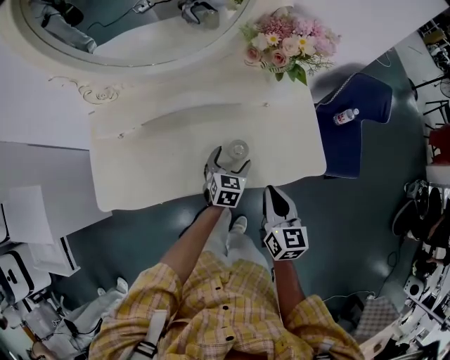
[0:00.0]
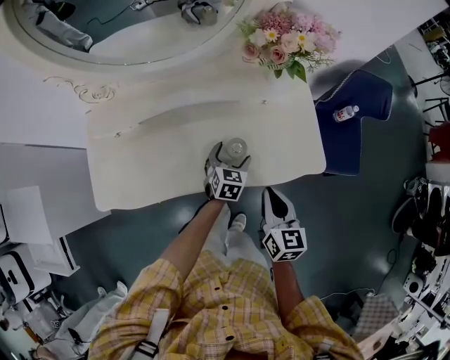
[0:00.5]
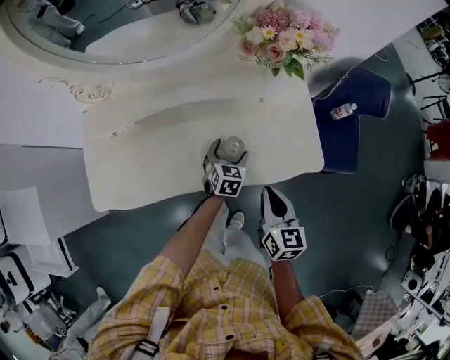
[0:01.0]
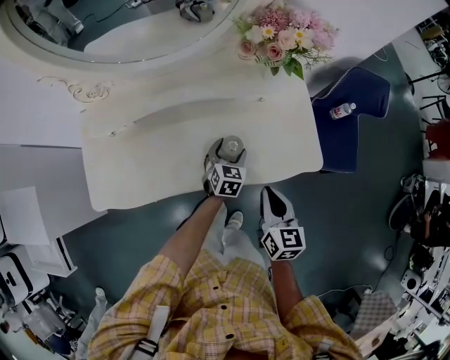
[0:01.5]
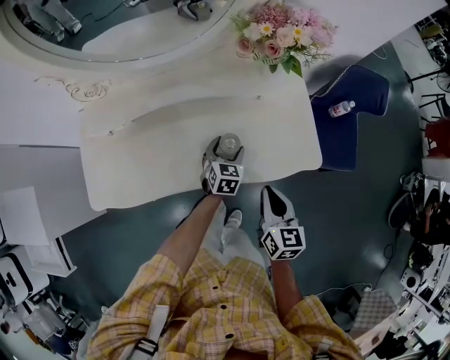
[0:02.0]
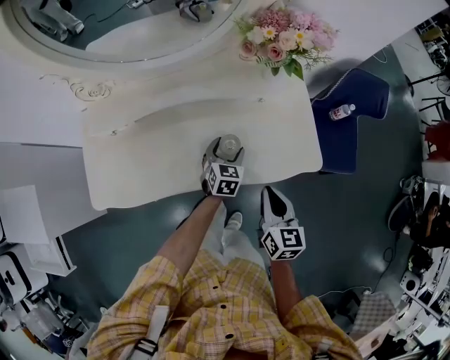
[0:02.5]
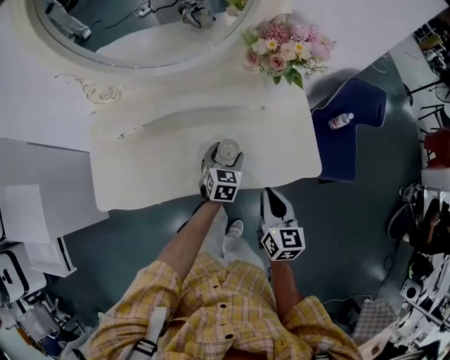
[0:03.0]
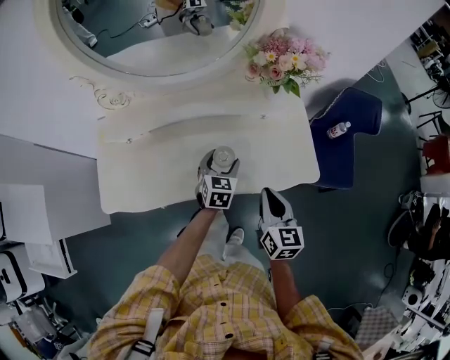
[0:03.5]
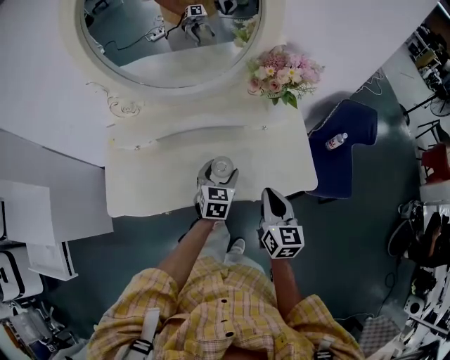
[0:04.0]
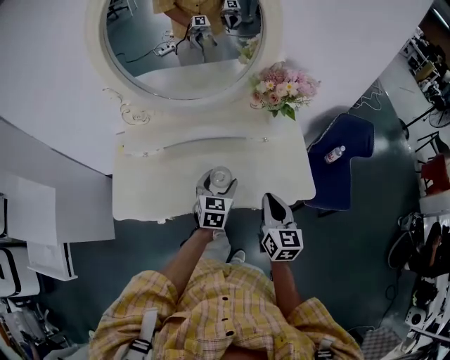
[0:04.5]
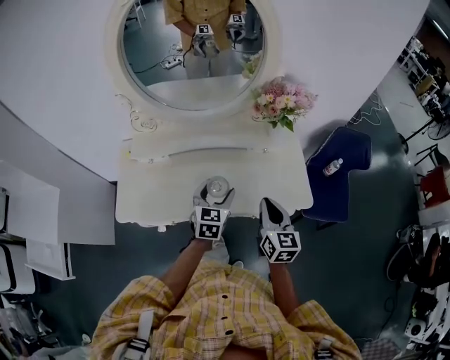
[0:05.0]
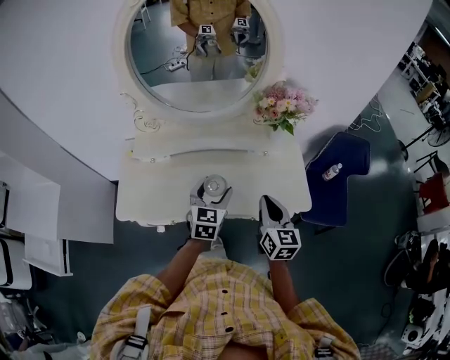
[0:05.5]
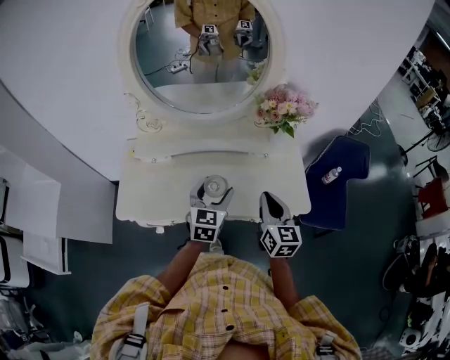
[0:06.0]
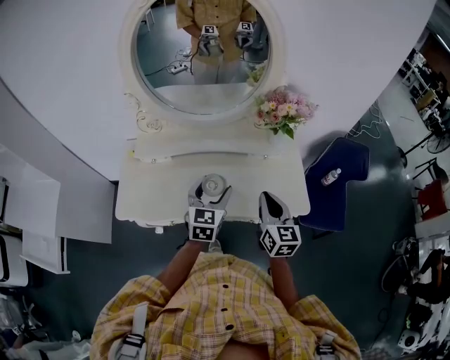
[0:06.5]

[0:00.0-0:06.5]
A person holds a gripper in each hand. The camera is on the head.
0:00.0 to 0:02.0: There are only small adjustments of the grippers.
0:02.0 to 0:04.5: The left gripper is displaced upward by roughly 20 cm; the right gripper shifts roughly 10 cm upward.
0:04.5 to 0:06.5: The right gripper goes approximately 5 cm upward; the left gripper heads upward, covering some 10 cm.

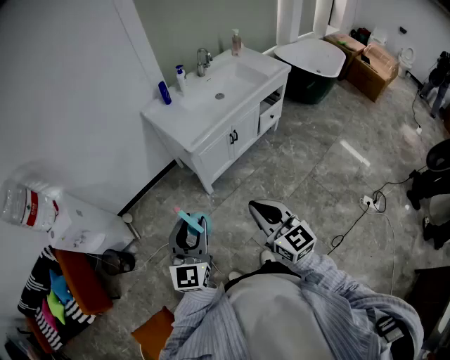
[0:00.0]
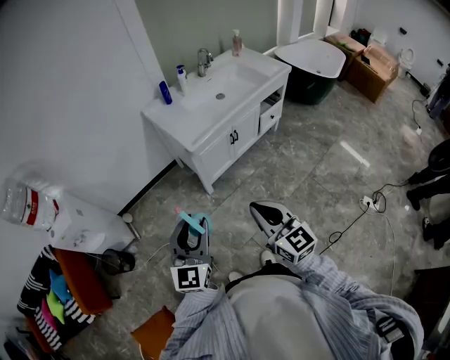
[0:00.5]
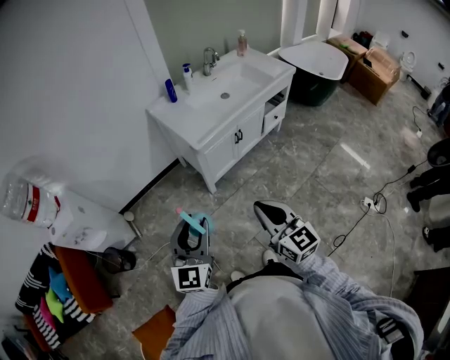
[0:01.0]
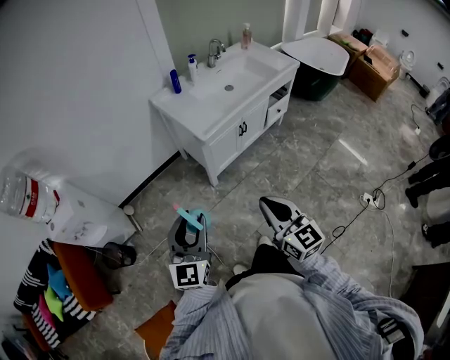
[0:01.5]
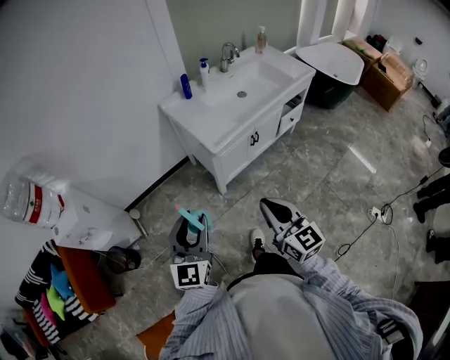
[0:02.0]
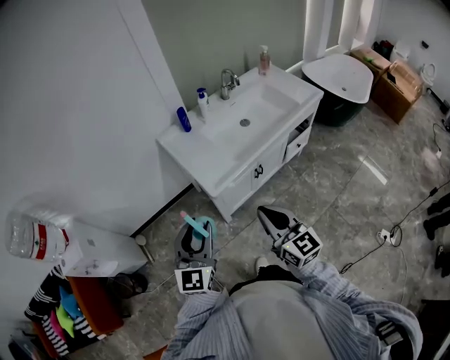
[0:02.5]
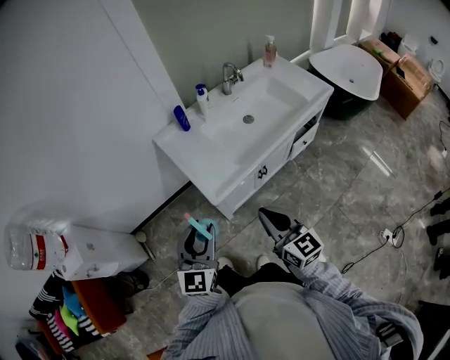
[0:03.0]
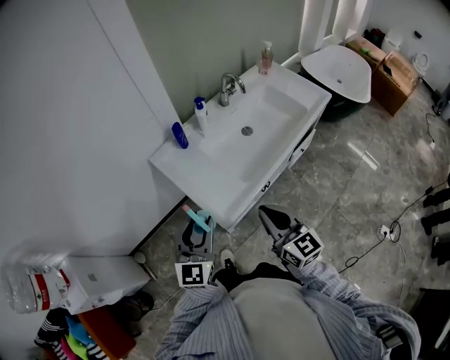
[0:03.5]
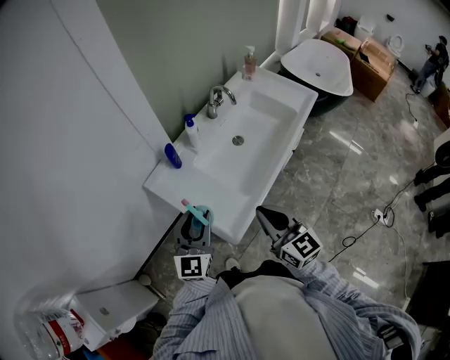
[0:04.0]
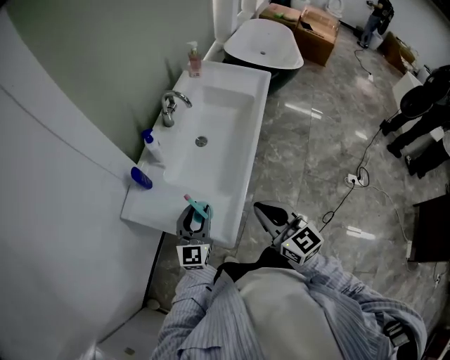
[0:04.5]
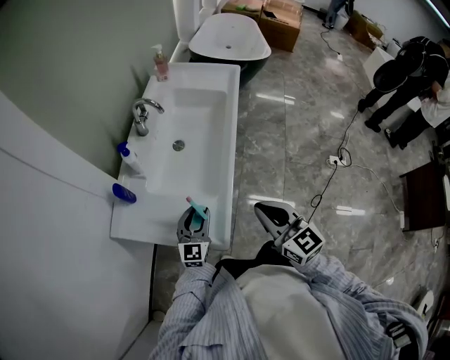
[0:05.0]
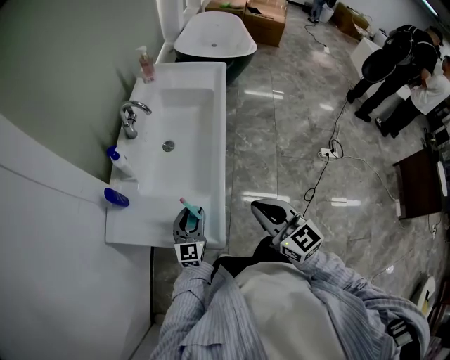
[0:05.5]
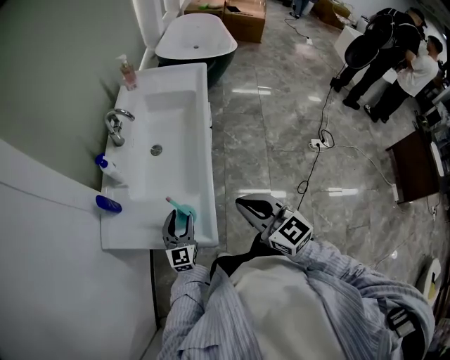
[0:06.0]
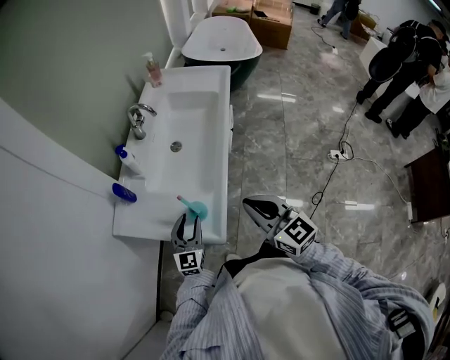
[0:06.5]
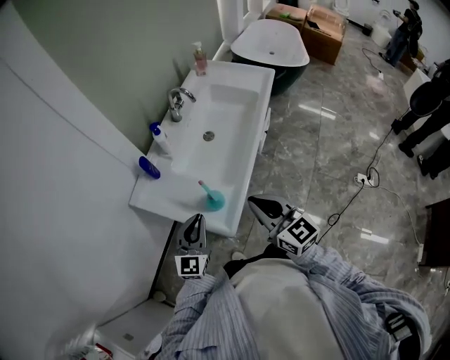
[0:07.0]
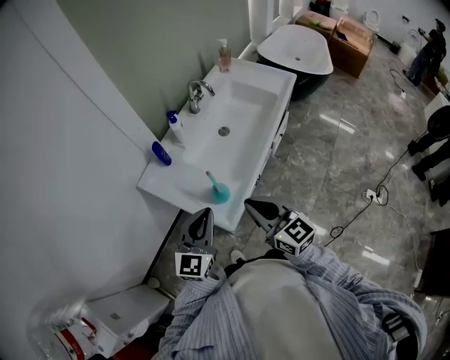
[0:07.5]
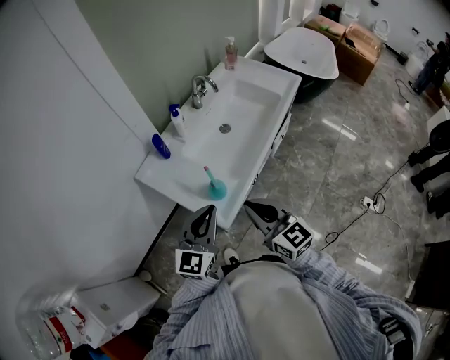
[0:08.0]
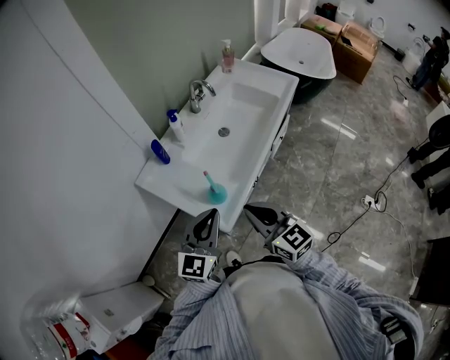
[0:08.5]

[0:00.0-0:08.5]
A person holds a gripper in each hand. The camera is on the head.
0:00.0 to 0:02.0: The left gripper travels to the left and forward by some 10 cm; the right gripper travels forward and to the left by about 10 cm.
0:02.0 to 0:04.0: The pair of grippers is taken forward, roughly 50 cm.
0:04.0 to 0:06.5: The right gripper shifts by roughly 5 cm, and swivels roughly 20 degrees. The left gripper is displaced downward by some 15 cm, and swivels roughly 20 degrees.
0:06.5 to 0:08.5: The right gripper changes its angle by some 20 degrees. The left gripper shifts approximately 20 cm upward and backward, and closes.

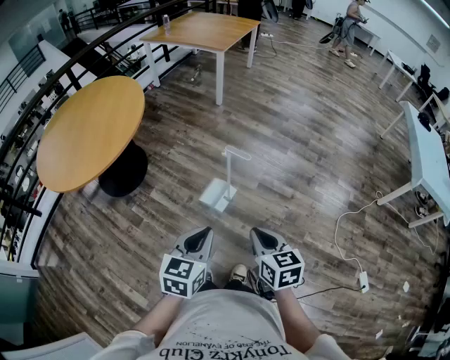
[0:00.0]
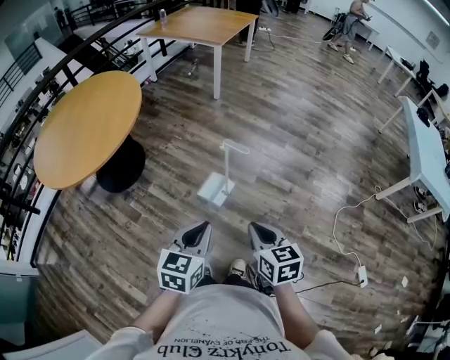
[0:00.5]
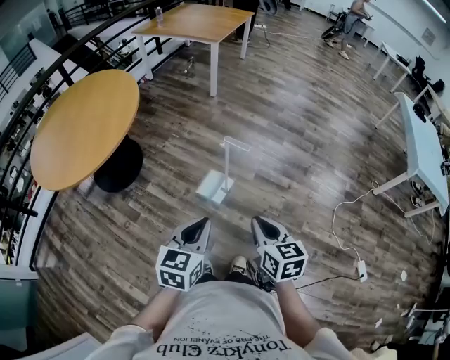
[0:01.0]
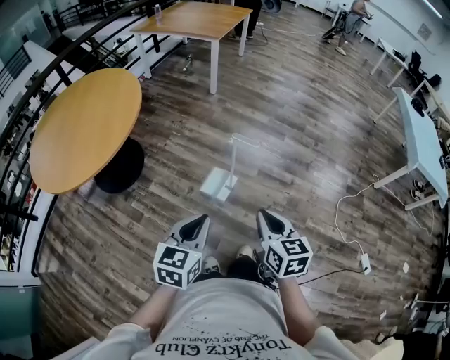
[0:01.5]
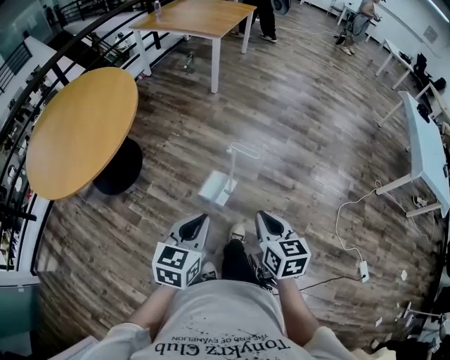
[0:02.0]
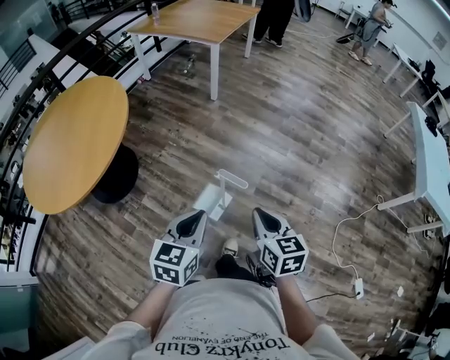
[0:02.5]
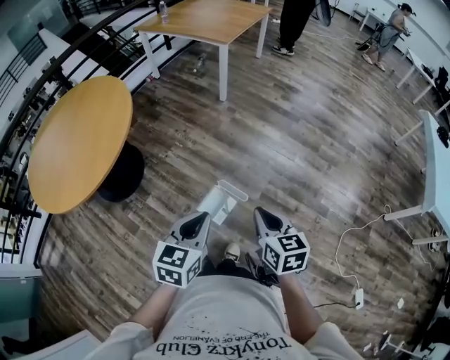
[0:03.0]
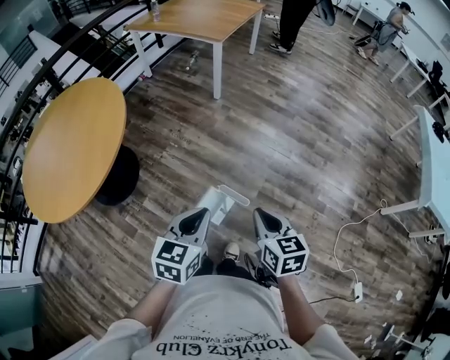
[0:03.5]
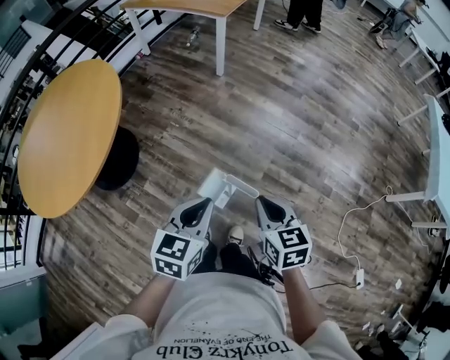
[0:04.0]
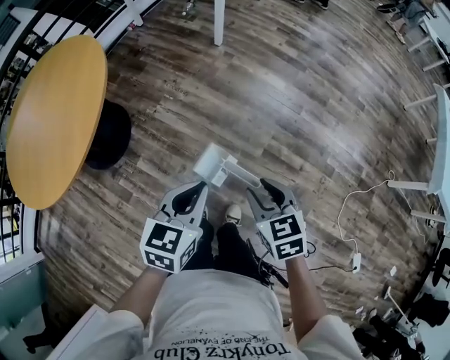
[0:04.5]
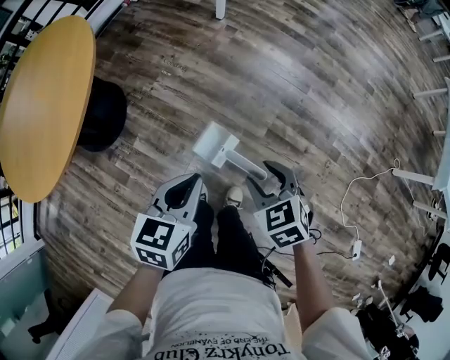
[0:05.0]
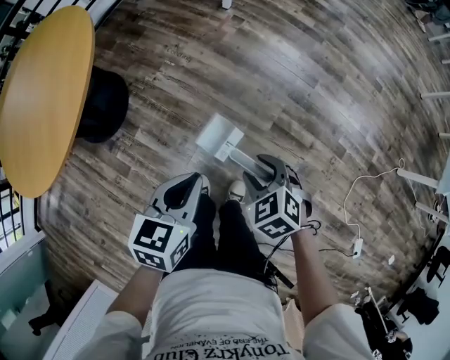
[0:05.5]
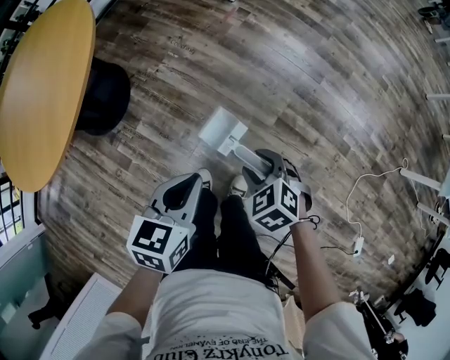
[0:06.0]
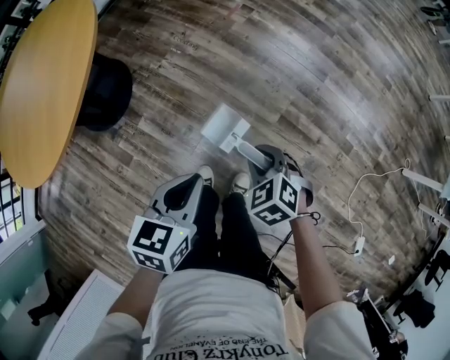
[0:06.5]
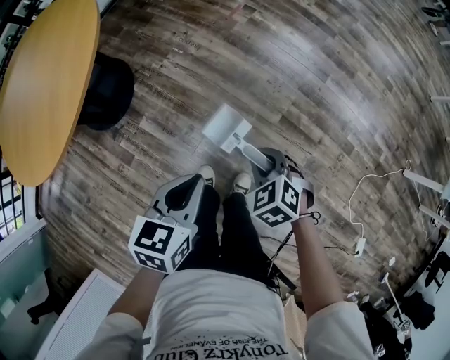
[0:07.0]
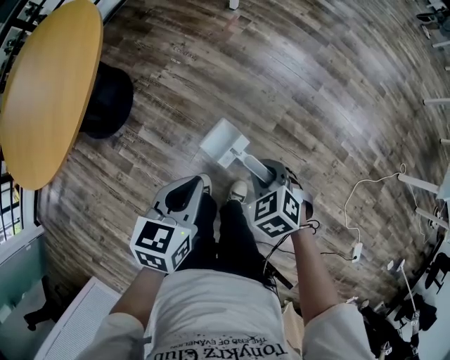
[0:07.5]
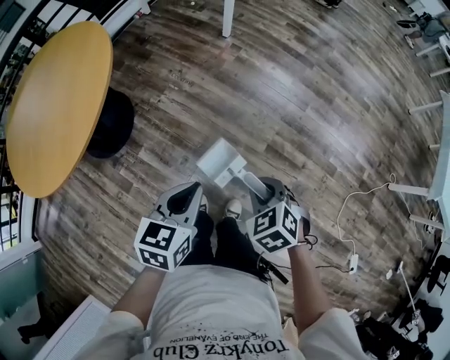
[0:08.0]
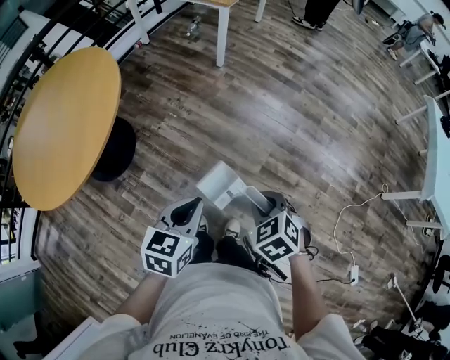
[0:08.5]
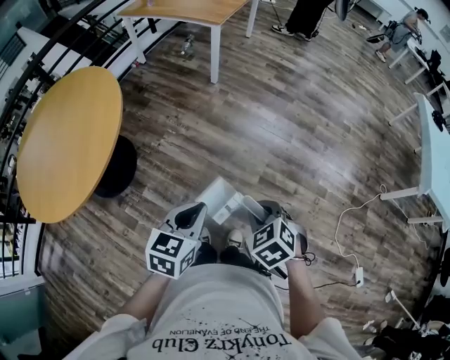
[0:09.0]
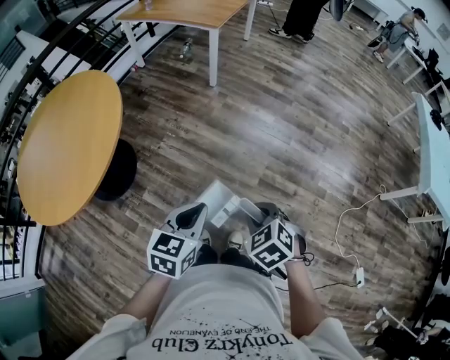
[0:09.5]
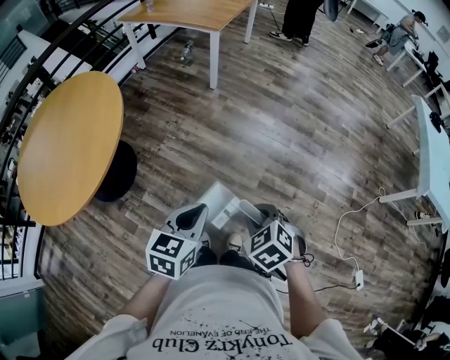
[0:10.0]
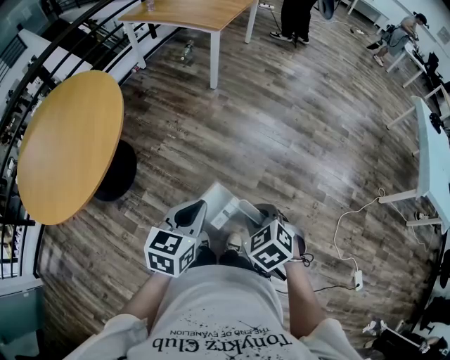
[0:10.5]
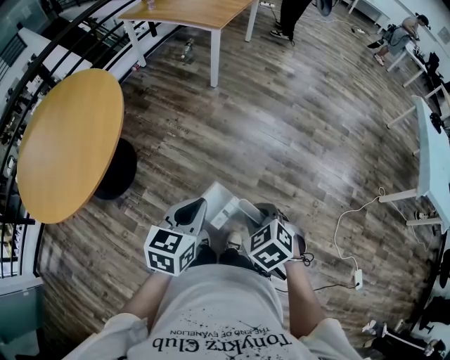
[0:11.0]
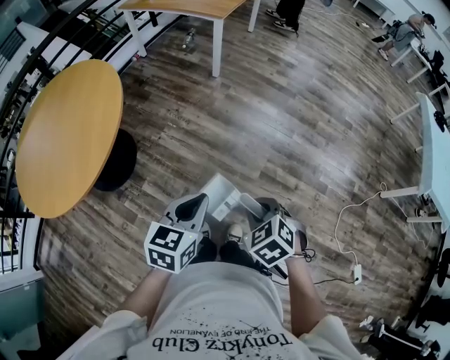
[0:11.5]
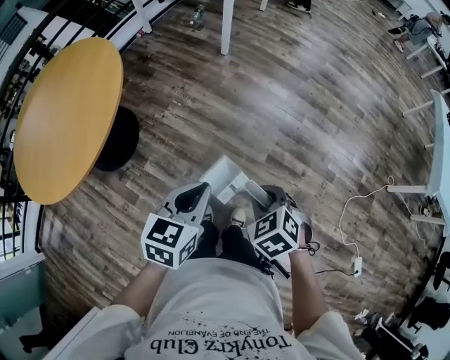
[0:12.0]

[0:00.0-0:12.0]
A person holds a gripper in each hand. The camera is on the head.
0:00.0 to 0:02.0: The right gripper goes approximately 10 cm forward, while the left gripper is displaced forward and to the left by roughly 10 cm.
0:02.0 to 0:04.0: The grippers both shift forward by approximately 25 cm.
0:04.0 to 0:06.0: The left gripper moves downward, about 15 cm. The right gripper travels downward by approximately 20 cm, rotates roughly 50 degrees, and opens its fingers.
0:06.0 to 0:08.0: The right gripper heads upward, covering roughly 10 cm, and closes its fingers. Meanwhile the left gripper shifts about 5 cm upward.
0:08.0 to 0:10.0: The grippers both shift upward and backward by about 10 cm.
0:10.0 to 0:12.0: The right gripper moves about 5 cm. The left gripper ends up some 5 cm from where it was.
